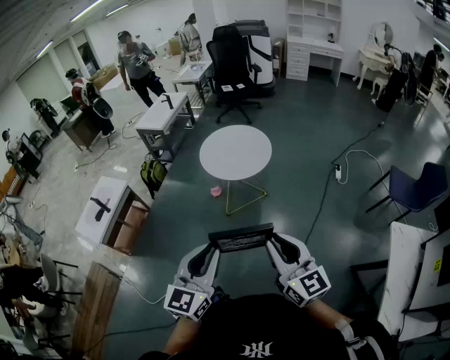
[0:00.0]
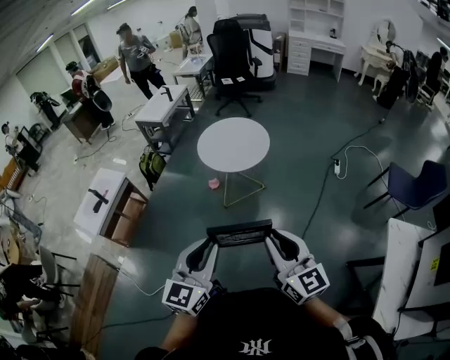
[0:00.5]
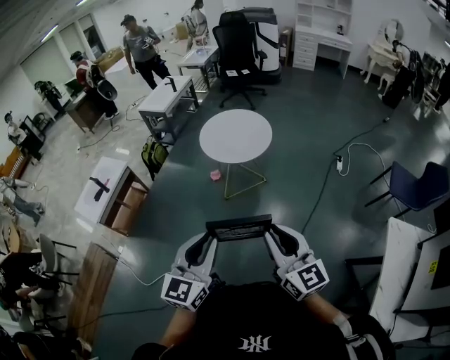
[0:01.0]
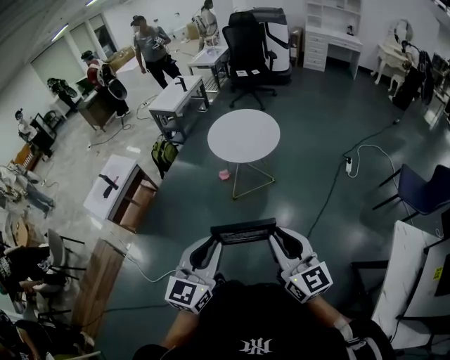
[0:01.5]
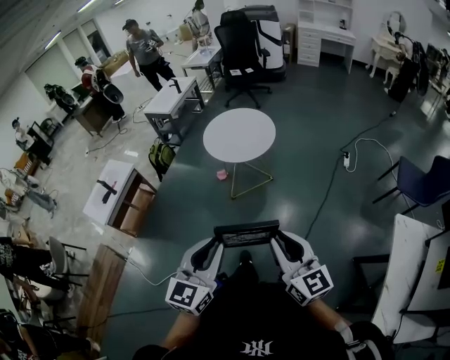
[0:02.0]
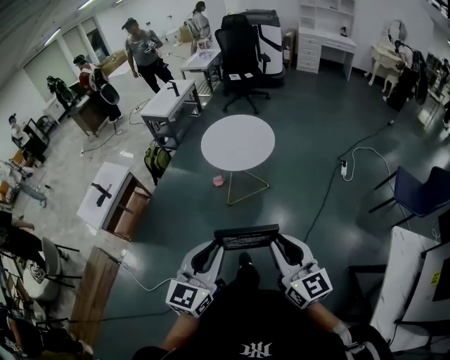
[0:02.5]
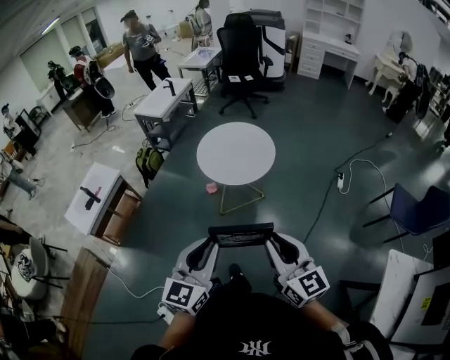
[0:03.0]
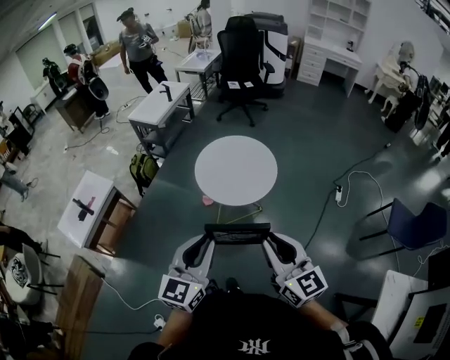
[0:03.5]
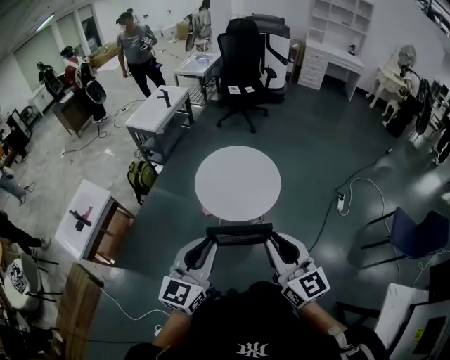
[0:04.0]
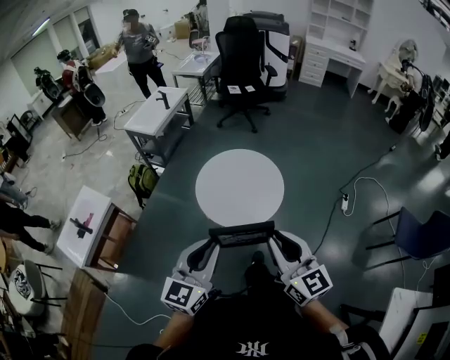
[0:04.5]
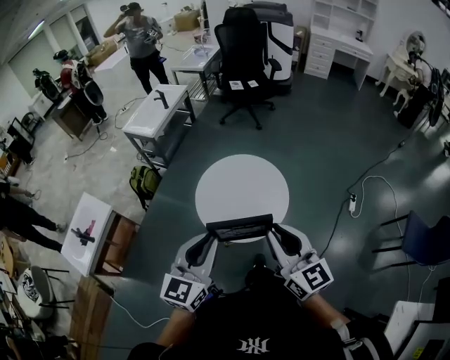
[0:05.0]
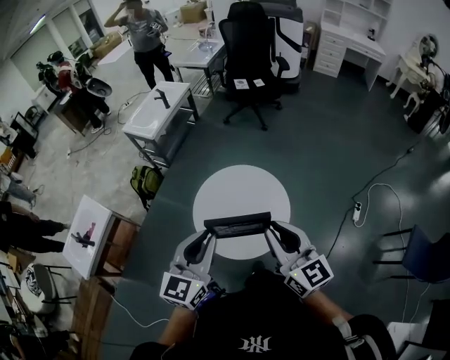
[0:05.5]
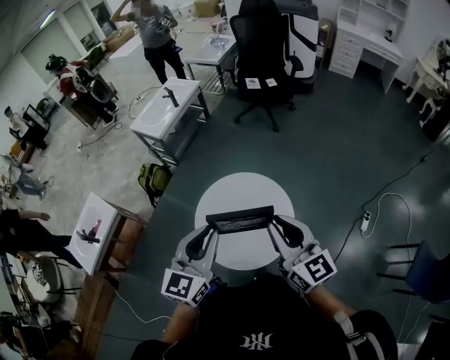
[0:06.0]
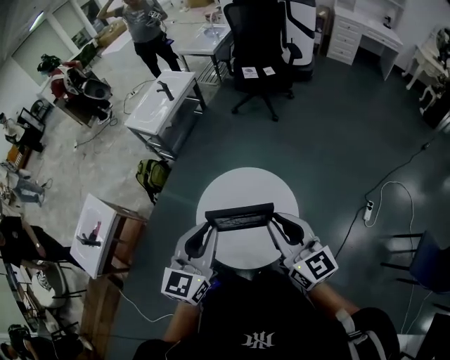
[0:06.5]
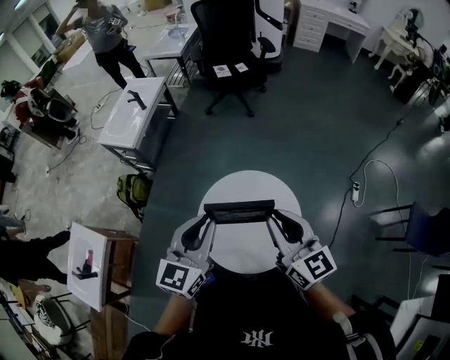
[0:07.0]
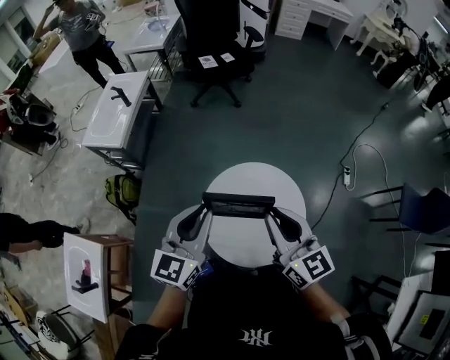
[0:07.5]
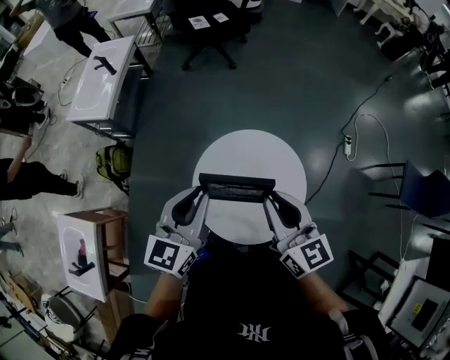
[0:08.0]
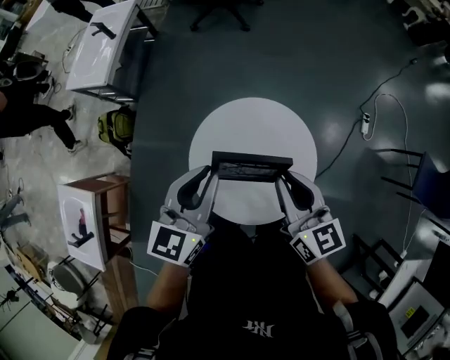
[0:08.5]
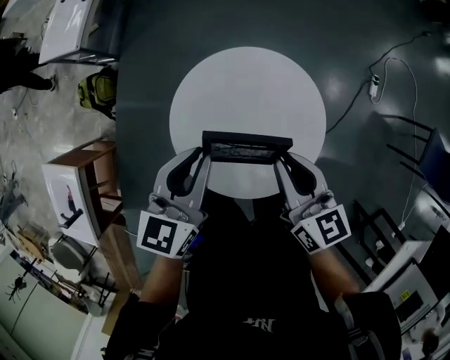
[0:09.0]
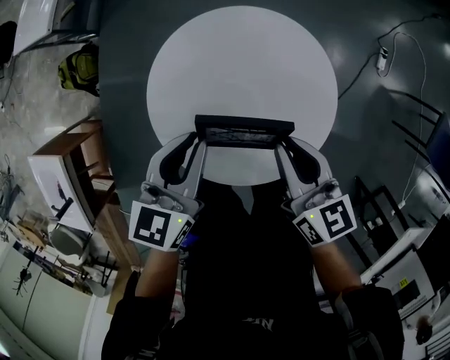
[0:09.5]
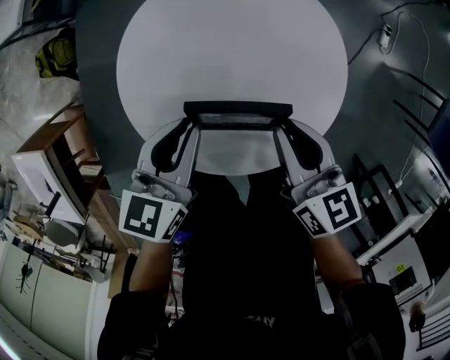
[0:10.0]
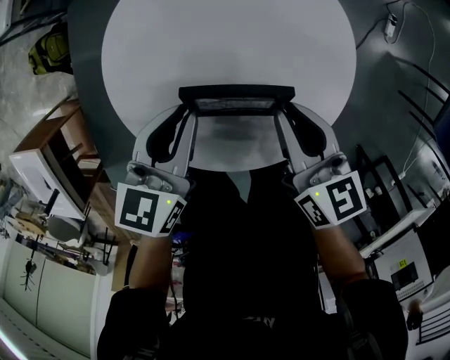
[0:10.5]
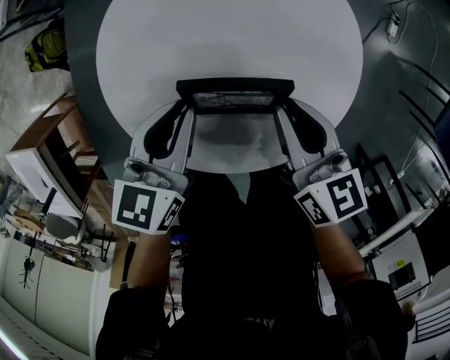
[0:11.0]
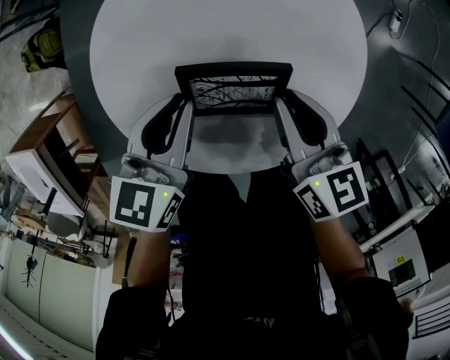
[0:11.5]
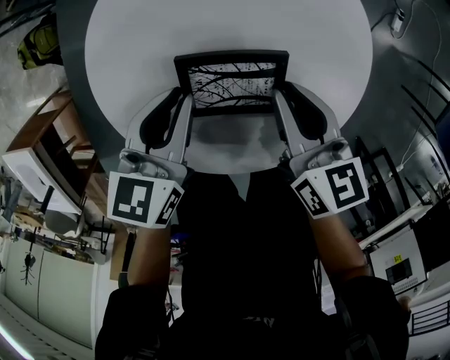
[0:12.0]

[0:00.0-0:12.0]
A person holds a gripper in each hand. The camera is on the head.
0:00.0 to 0:02.0: Both grippers travel together to the right, approximately 5 cm.
0:02.0 to 0:04.0: Both grippers travel together forward, approximately 40 cm.
0:04.0 to 0:06.0: Both grippers move forward, some 40 cm.
0:06.0 to 0:08.0: The left gripper heads forward, to the left and downward, covering approximately 25 cm, and changes its angle by roughly 30 degrees; the right gripper is displaced to the left, forward and downward by about 20 cm, and turns by some 30 degrees.
0:08.0 to 0:10.0: Both grippers travel together downward, approximately 35 cm. The right gripper swivels approximately 30 degrees, while the left gripper changes its angle by some 30 degrees.
0:10.0 to 0:12.0: The grippers both shift downward by some 10 cm.

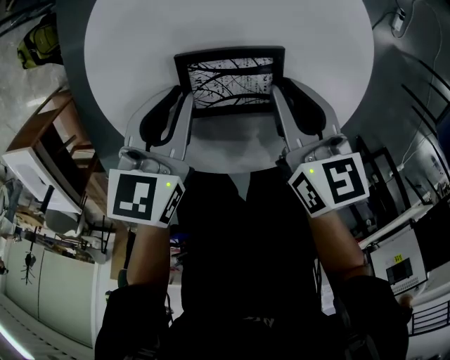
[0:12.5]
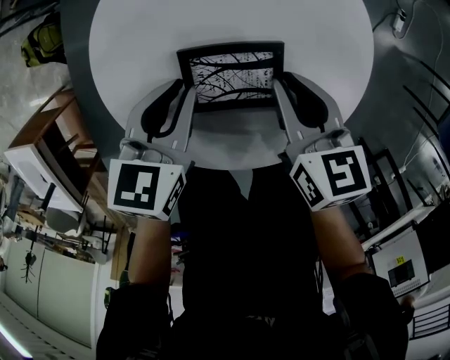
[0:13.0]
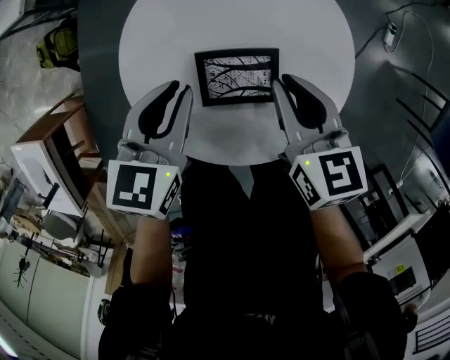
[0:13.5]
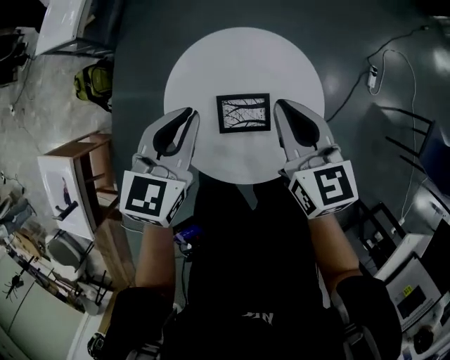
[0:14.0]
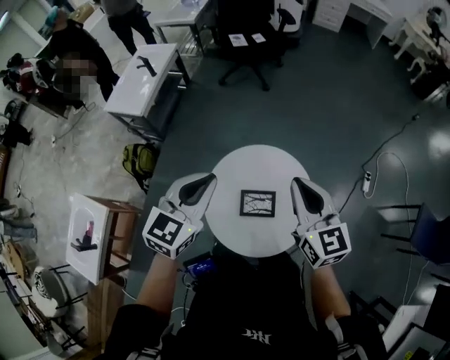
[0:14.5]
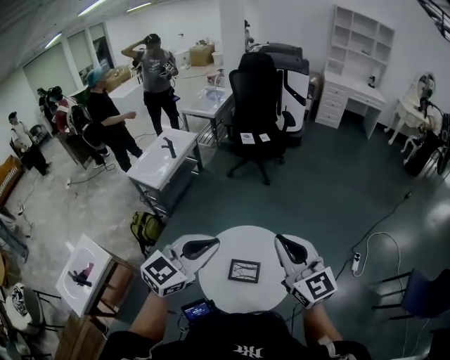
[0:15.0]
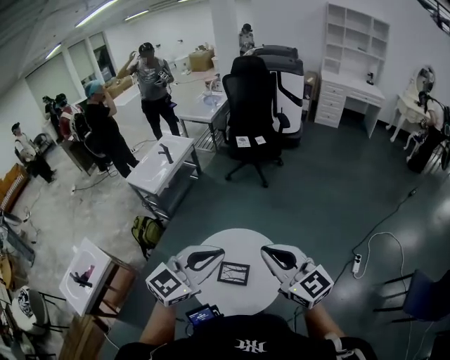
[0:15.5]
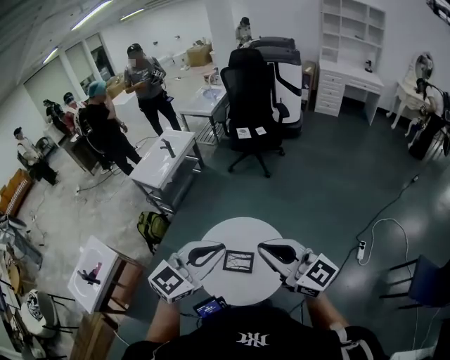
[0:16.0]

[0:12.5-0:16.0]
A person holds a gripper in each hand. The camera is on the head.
0:12.5 to 0:14.5: The grippers both shift upward by about 40 cm. The left gripper swivels roughly 40 degrees. Meanwhile the right gripper points its fingers approximately 30 degrees further upward.
0:14.5 to 0:16.0: The left gripper is displaced to the right, upward and backward by approximately 25 cm, while the right gripper travels upward and backward by some 20 cm, and swivels some 40 degrees.

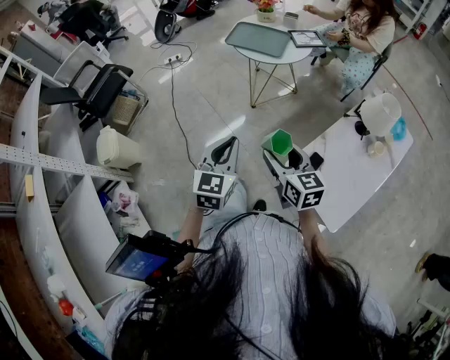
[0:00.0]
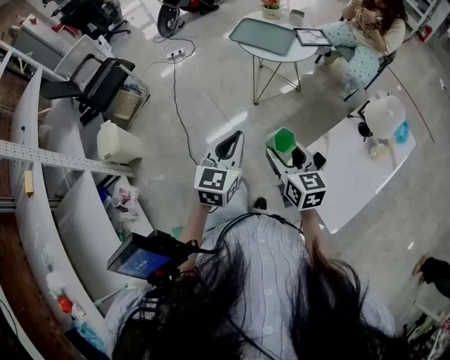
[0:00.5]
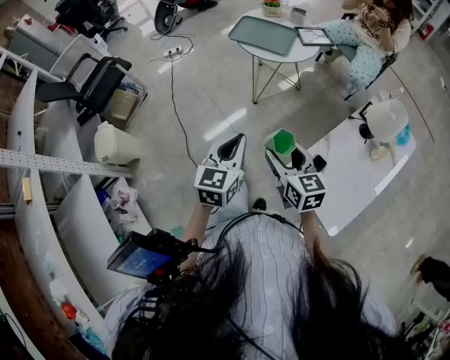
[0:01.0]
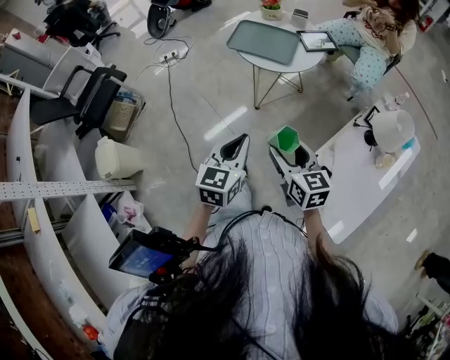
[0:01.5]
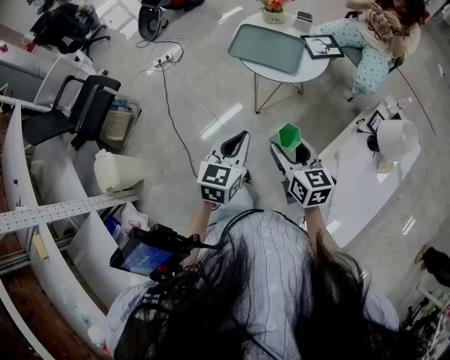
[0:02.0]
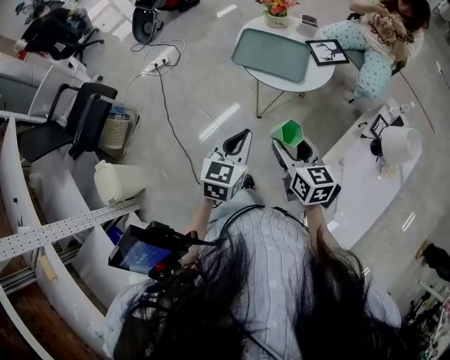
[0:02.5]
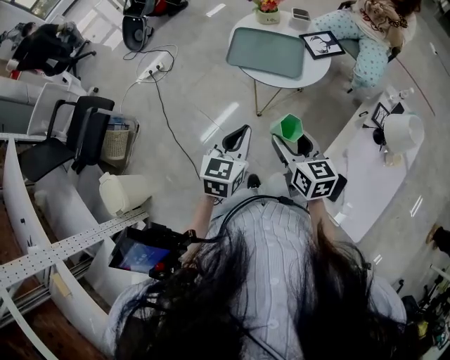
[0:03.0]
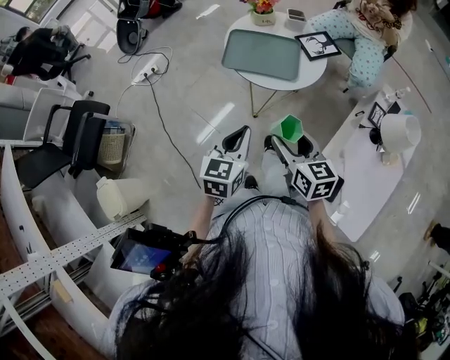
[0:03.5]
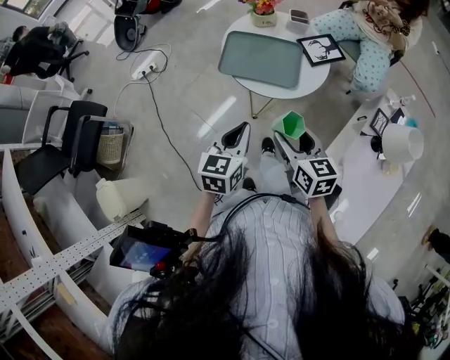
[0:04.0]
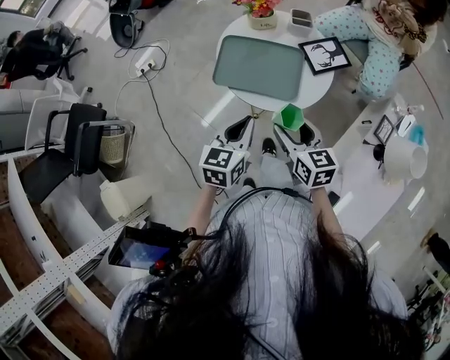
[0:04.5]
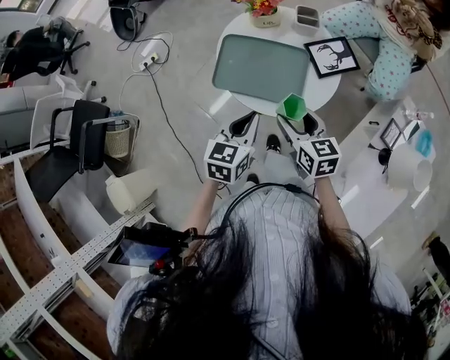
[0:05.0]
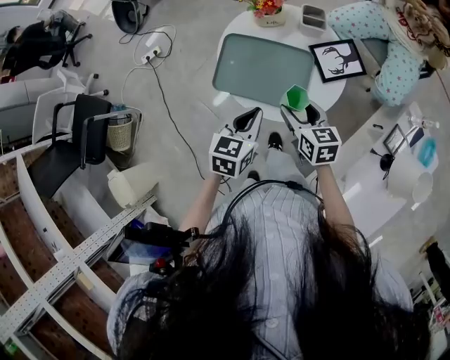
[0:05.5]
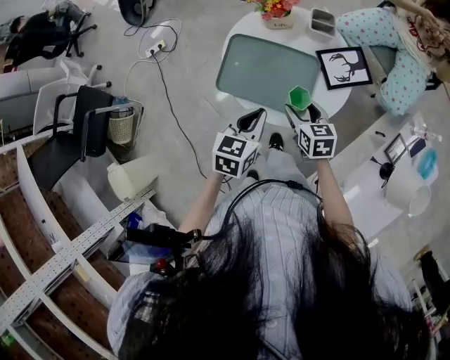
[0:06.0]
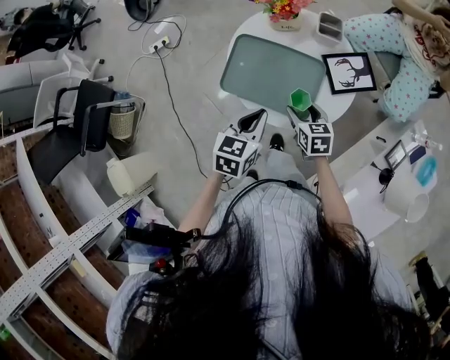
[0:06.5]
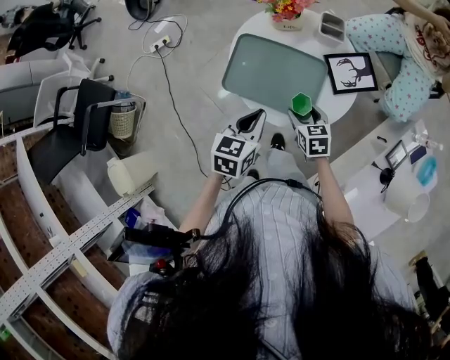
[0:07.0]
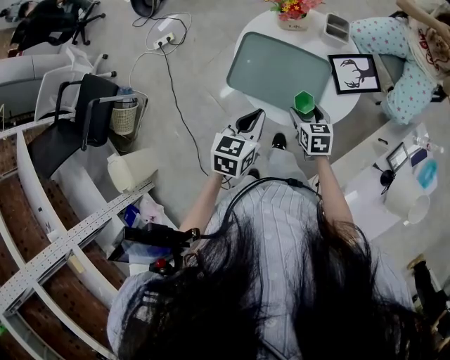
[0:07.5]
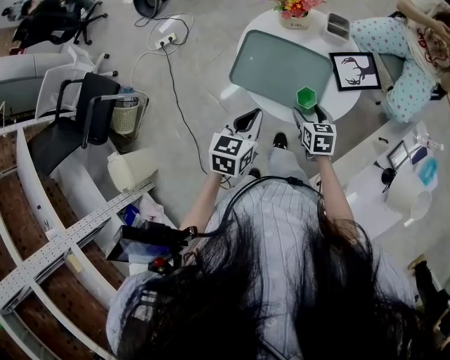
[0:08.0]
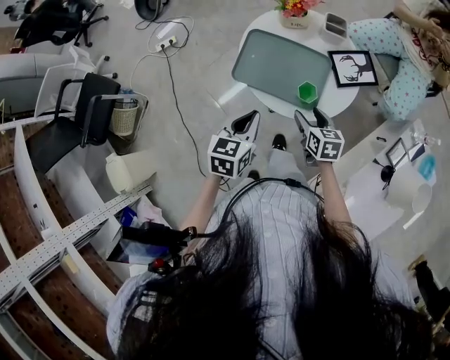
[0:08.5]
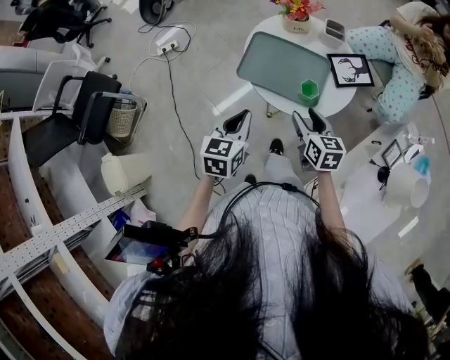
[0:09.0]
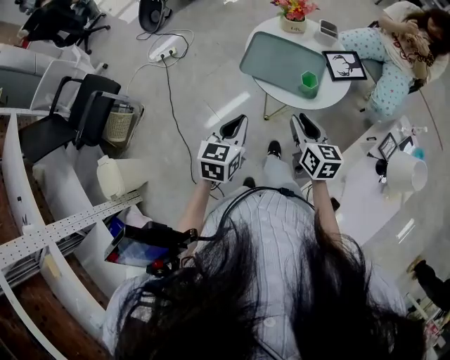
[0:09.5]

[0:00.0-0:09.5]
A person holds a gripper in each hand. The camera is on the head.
0:00.0 to 0:02.0: Both grippers move forward, about 25 cm.
0:02.0 to 0:04.0: The grippers both shift forward by roughly 15 cm.
0:04.0 to 0:05.5: The right gripper heads forward and downward, covering approximately 25 cm. Meanwhile the left gripper heads forward, covering some 20 cm.
0:05.5 to 0:07.5: The right gripper shifts some 10 cm downward.
0:07.5 to 0:09.5: The left gripper goes roughly 15 cm backward and to the left; the right gripper shifts roughly 25 cm upward and backward, changes its angle by about 20 degrees, and closes its fingers.

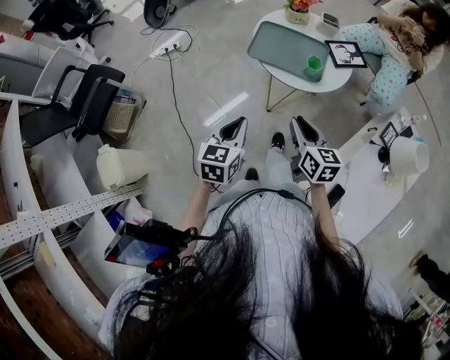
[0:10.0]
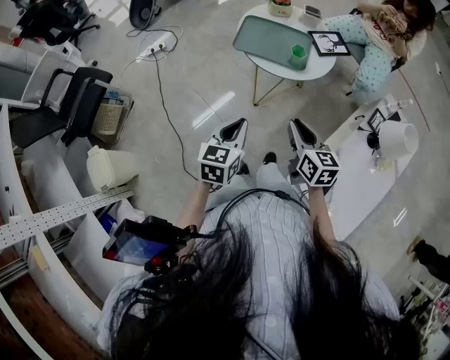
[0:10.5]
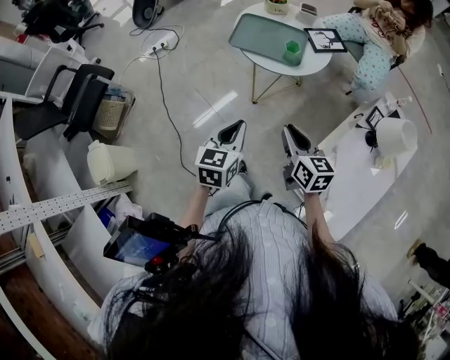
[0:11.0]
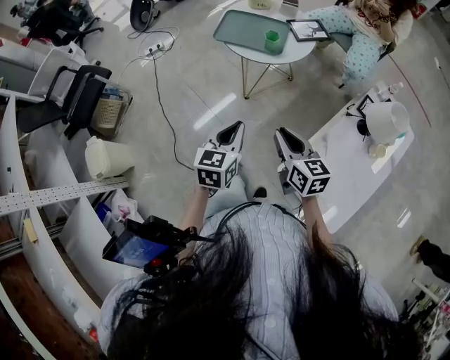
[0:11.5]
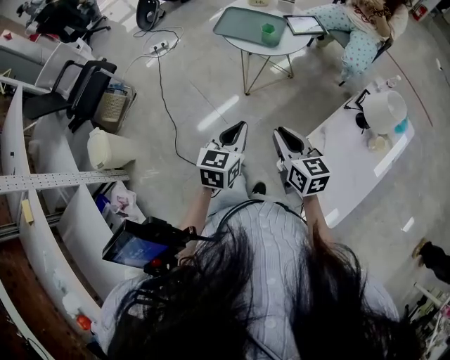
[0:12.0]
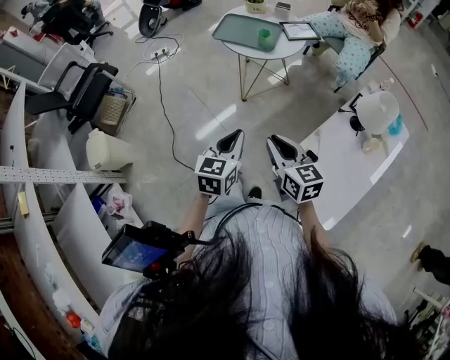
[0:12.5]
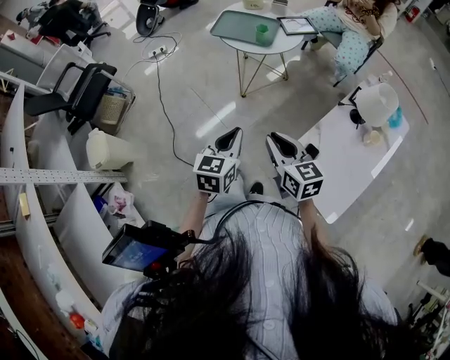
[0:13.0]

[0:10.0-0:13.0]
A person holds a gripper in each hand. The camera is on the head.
0:10.0 to 0:11.5: The grippers both shift backward and to the right by about 20 cm.
0:11.5 to 0:13.0: The grippers both shift backward by roughly 15 cm.
